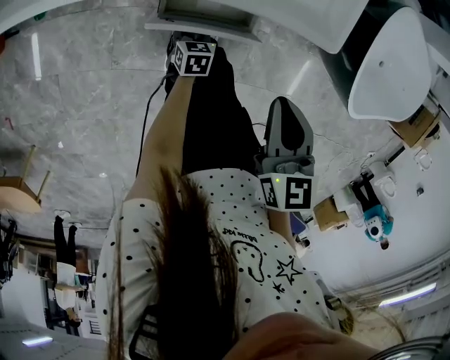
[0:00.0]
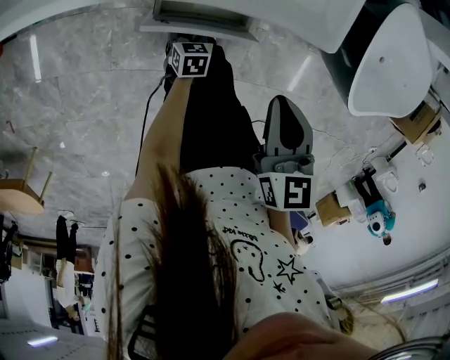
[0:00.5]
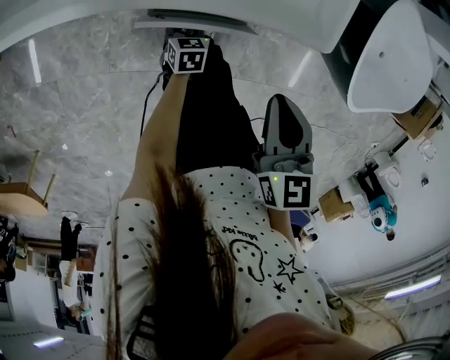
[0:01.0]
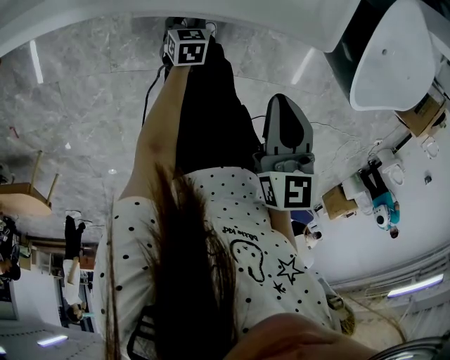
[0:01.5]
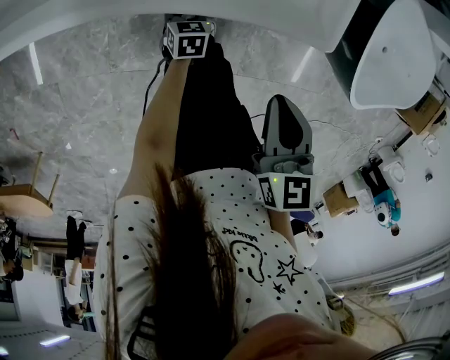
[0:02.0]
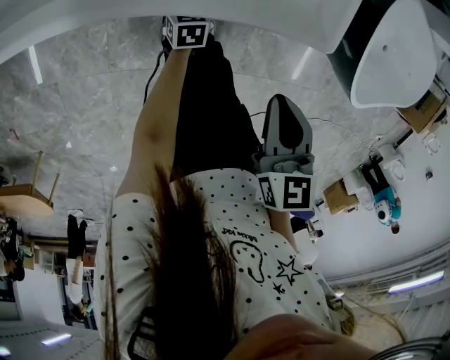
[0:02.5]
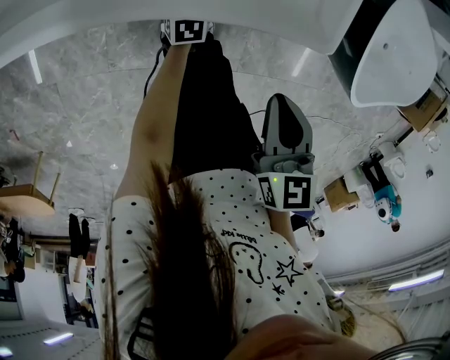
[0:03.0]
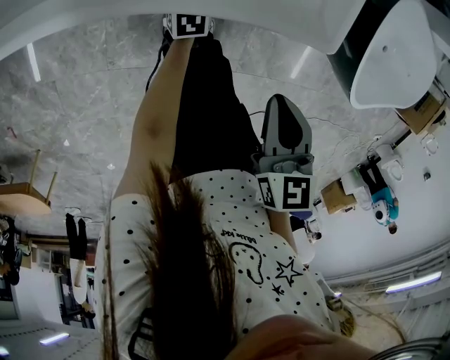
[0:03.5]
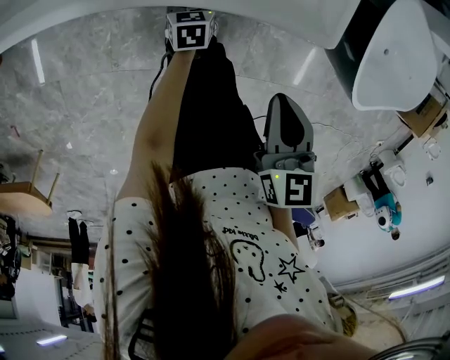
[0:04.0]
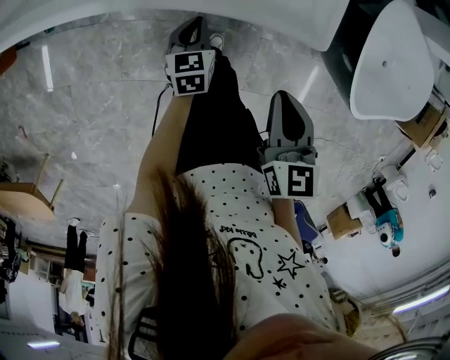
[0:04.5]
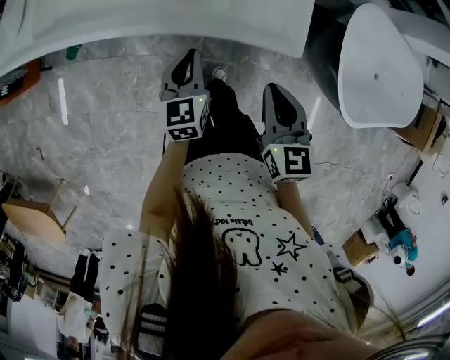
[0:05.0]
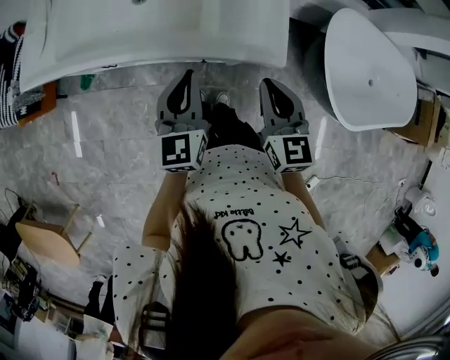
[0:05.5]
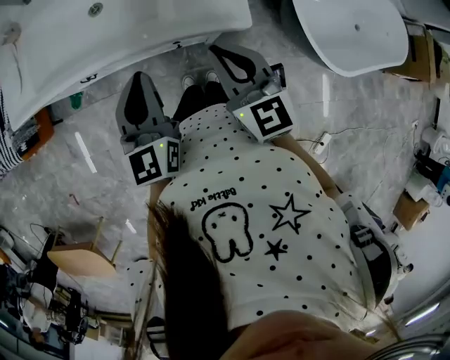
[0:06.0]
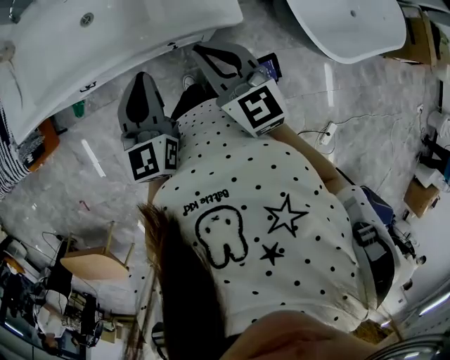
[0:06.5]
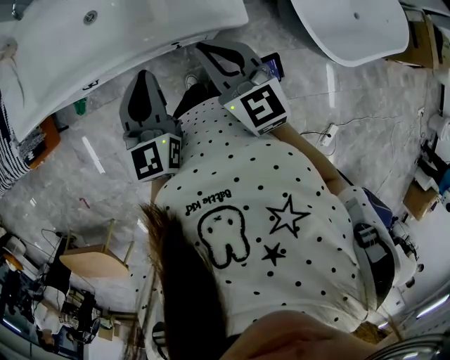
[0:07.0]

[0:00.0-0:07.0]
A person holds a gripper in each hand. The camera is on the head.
0:00.0 to 0:02.0: The left gripper shifts about 10 cm forward.
0:02.0 to 0:03.5: The left gripper shifts some 5 cm forward.
0:03.5 to 0:05.0: The right gripper shifts approximately 10 cm upward, while the left gripper goes approximately 30 cm upward, swivels about 20 degrees, and closes up.
0:05.0 to 0:07.0: The right gripper travels upward by approximately 10 cm. The left gripper shifts some 20 cm upward.

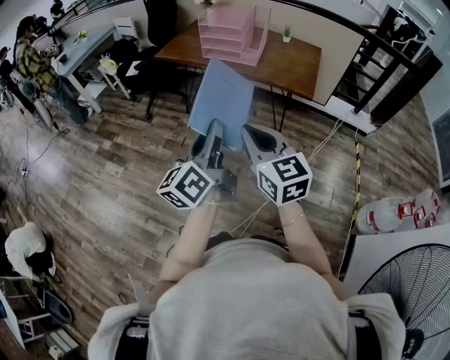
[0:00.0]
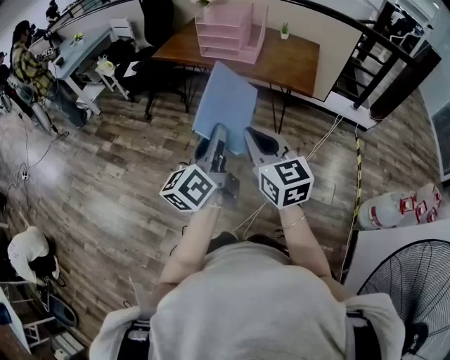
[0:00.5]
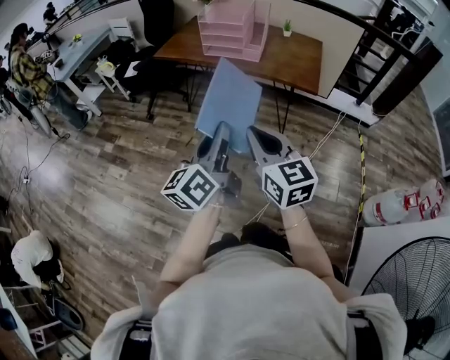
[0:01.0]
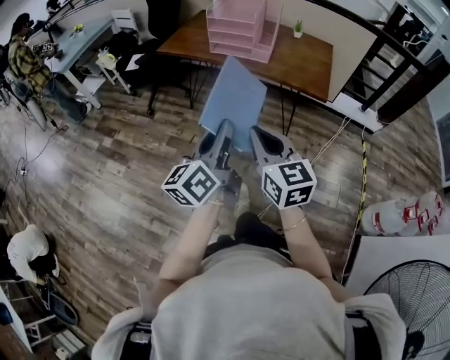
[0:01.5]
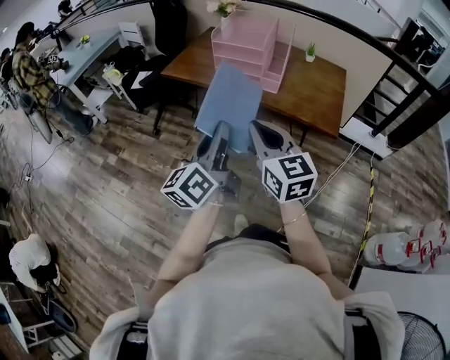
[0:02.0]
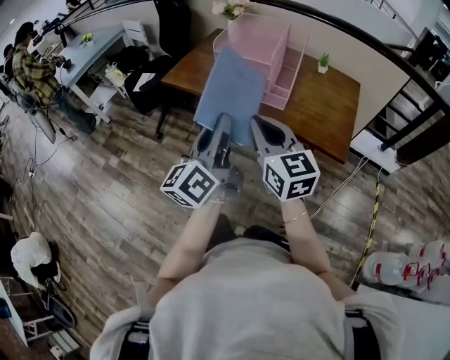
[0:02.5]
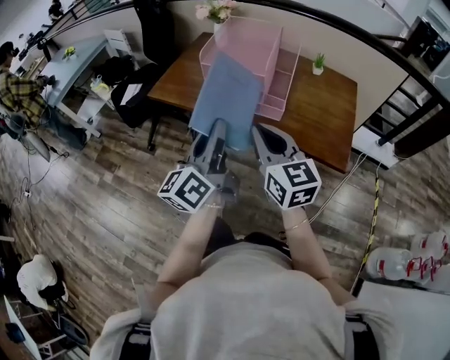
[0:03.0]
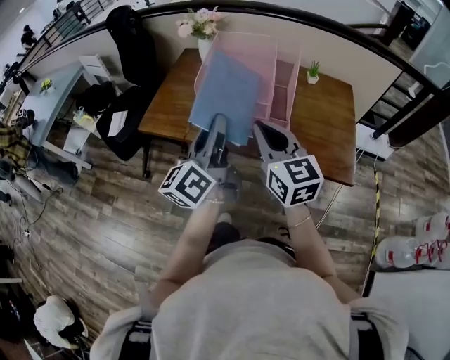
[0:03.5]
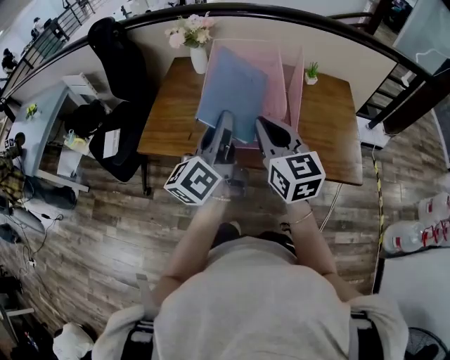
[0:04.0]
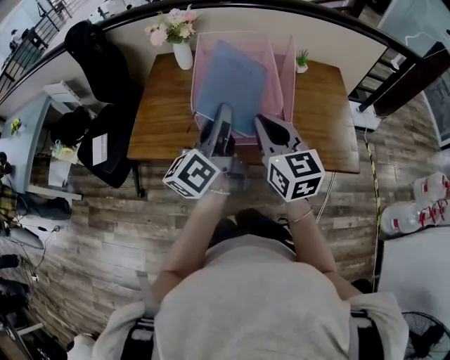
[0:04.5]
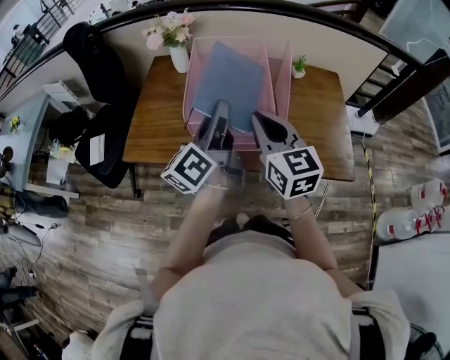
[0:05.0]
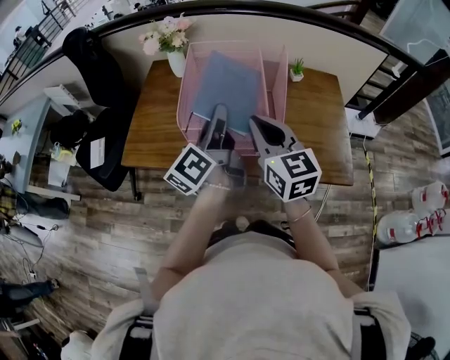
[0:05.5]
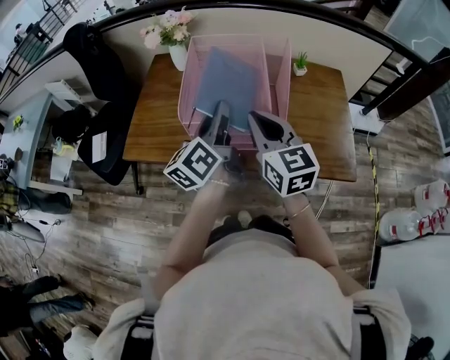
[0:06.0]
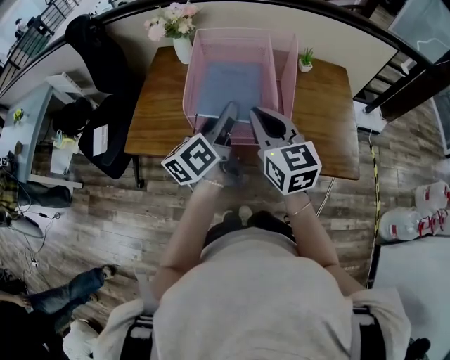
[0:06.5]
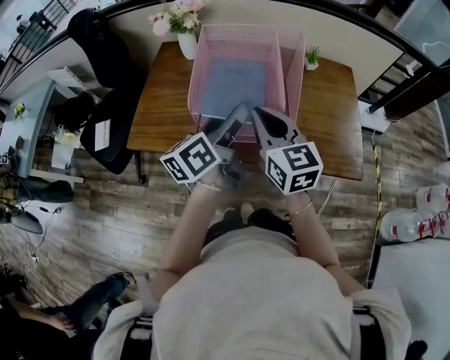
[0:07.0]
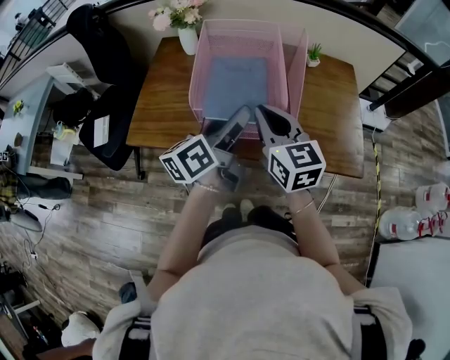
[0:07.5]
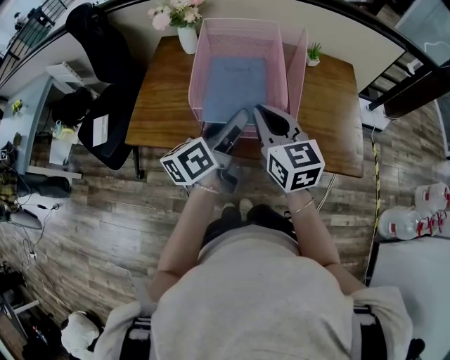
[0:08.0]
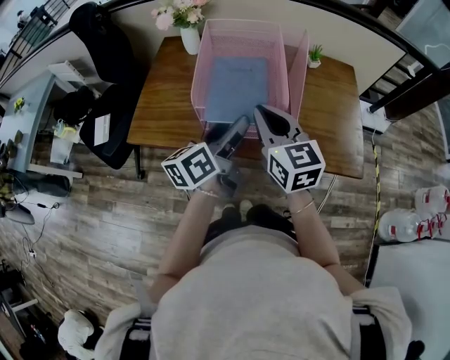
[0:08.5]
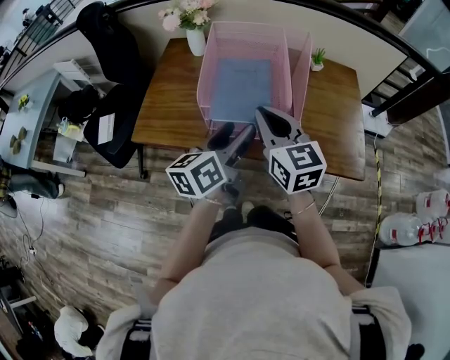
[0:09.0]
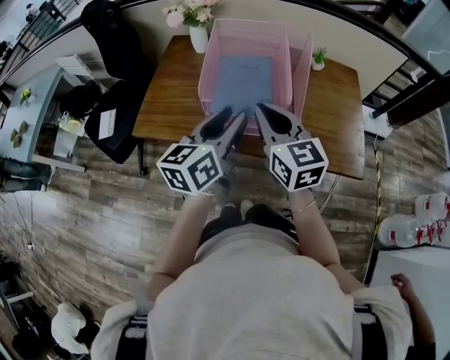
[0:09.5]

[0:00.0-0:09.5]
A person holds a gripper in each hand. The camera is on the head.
0:00.0 to 0:02.0: Both grippers travel together forward, approximately 20 cm.
0:02.0 to 0:04.0: The two grippers go approximately 40 cm forward.
0:04.0 to 0:05.5: The right gripper shifts by approximately 5 cm; the left gripper travels forward by some 10 cm.
0:05.5 to 0:07.5: The left gripper changes its angle by about 20 degrees, and opens up.
0:07.5 to 0:09.5: The left gripper moves approximately 5 cm, swivels some 20 degrees, and closes up.

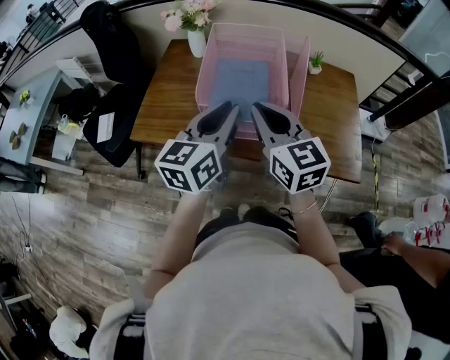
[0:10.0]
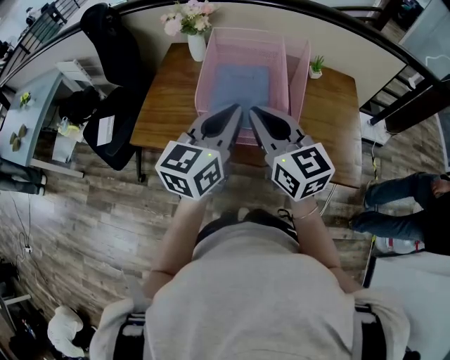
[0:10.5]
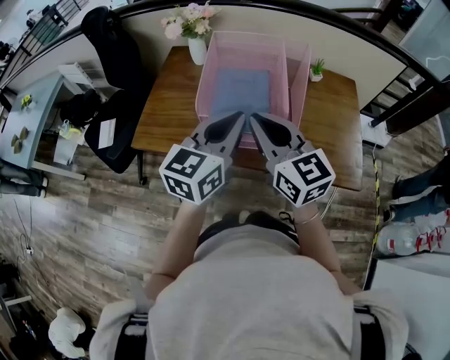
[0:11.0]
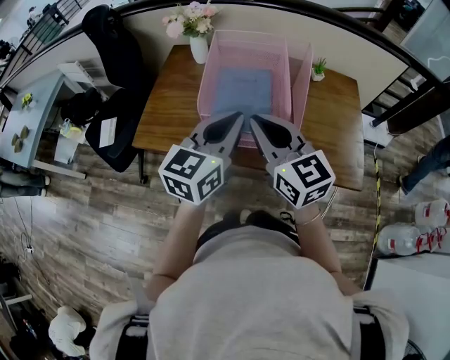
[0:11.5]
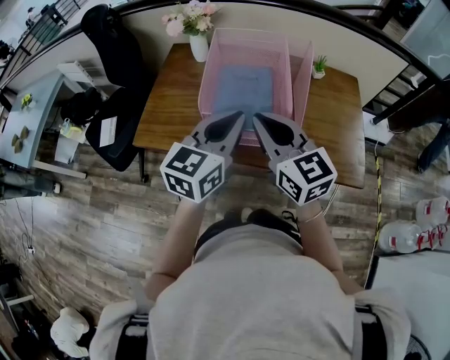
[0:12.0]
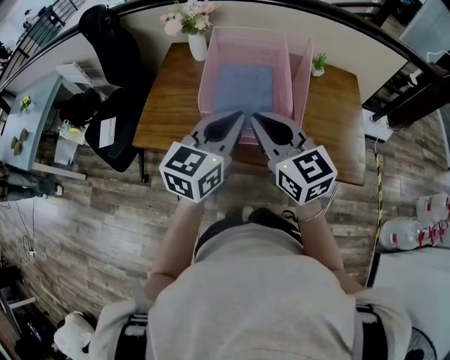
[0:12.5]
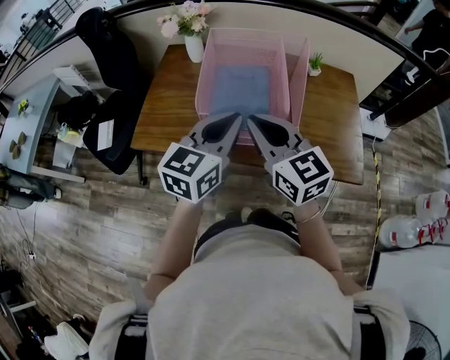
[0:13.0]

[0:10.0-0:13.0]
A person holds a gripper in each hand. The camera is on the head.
0:10.0 to 0:11.5: The grippers stay close to where they were, moving slightly.
0:11.5 to 0:13.0: Neither gripper changes place.

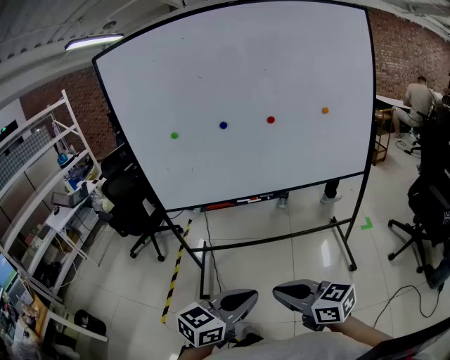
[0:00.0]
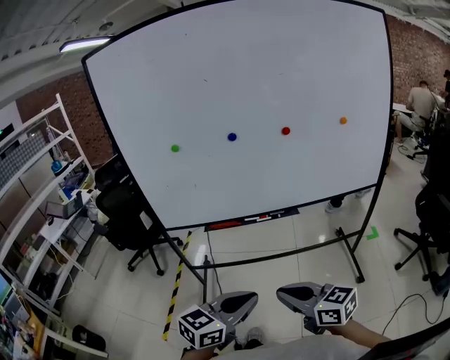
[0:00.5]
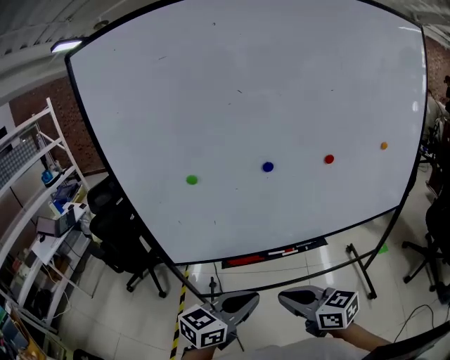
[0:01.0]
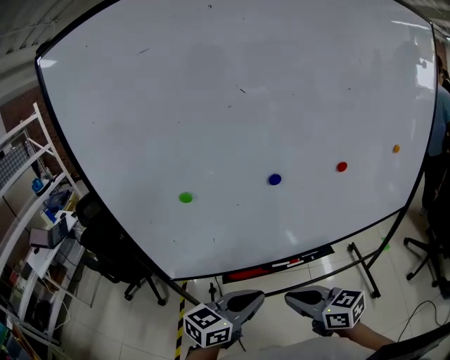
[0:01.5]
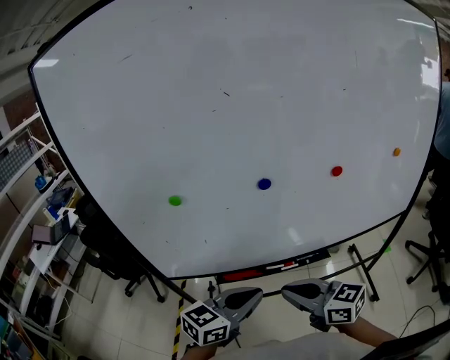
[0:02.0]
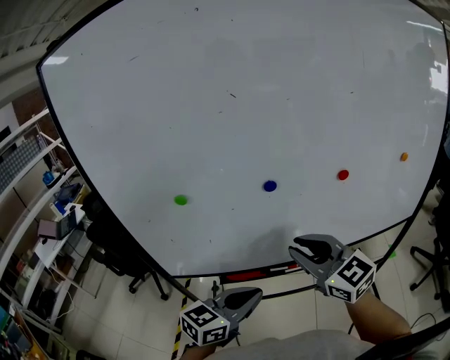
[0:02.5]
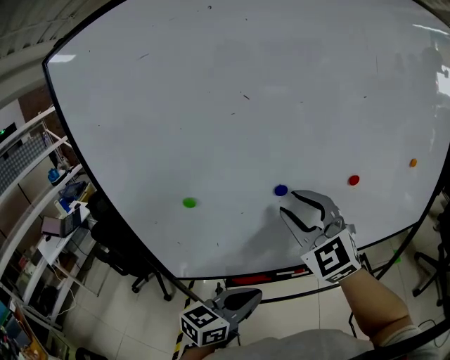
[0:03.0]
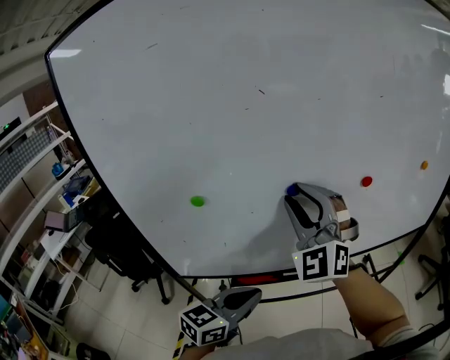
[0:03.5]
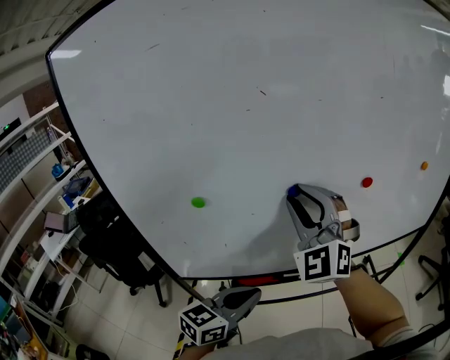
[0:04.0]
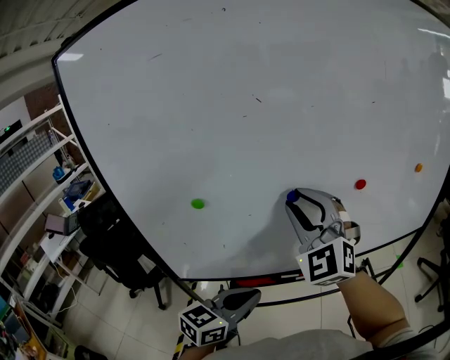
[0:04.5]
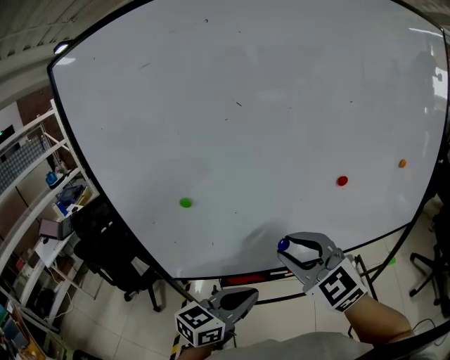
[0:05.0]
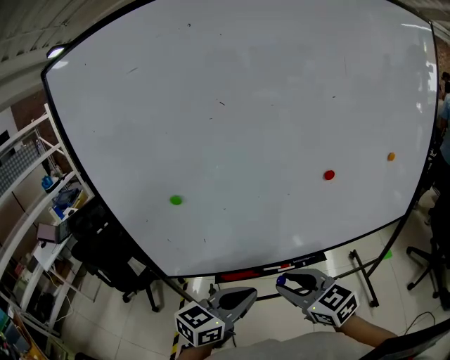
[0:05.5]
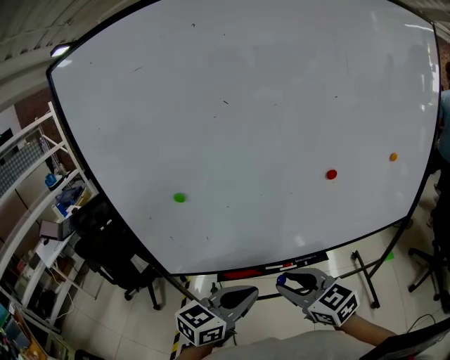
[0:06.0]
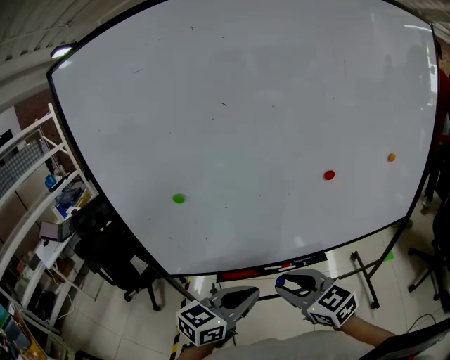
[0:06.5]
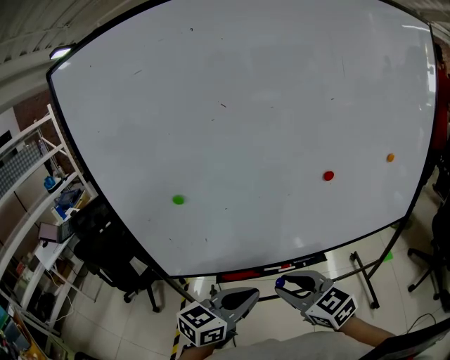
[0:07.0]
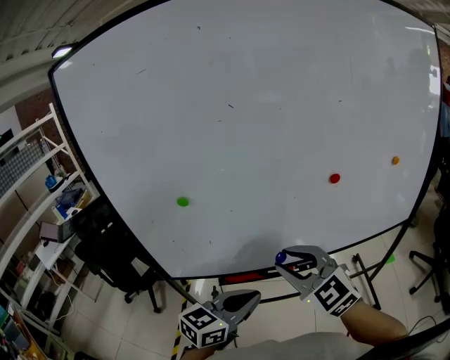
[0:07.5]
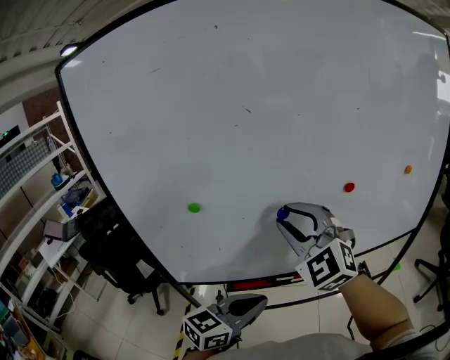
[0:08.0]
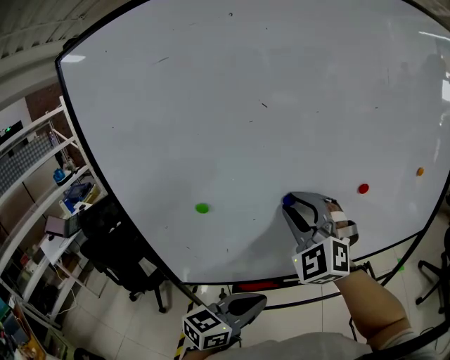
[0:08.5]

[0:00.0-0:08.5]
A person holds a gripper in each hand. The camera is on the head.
0:00.0 to 0:02.0: Both grippers are carried forward, roughly 40 cm.
0:02.0 to 0:04.0: The left gripper shifts approximately 5 cm to the left. Meanwhile the right gripper is displaced upward and forward by about 25 cm, rolls counterclockwise, seen from behind, by roughly 70 degrees, and opens.
0:04.0 to 0:06.5: The right gripper heads downward and backward, covering approximately 25 cm, and rotates about 60 degrees; the left gripper moves to the right and backward, about 10 cm.
0:06.5 to 0:08.5: The right gripper goes roughly 25 cm upward and forward, and rotates around the line of its fingers by about 50 degrees, counterclockwise from behind. The left gripper changes place by about 5 cm.
